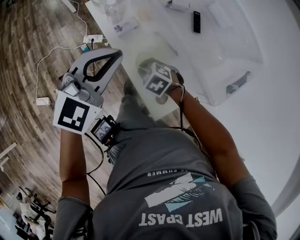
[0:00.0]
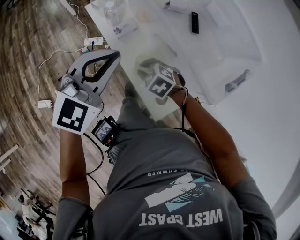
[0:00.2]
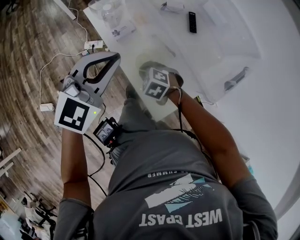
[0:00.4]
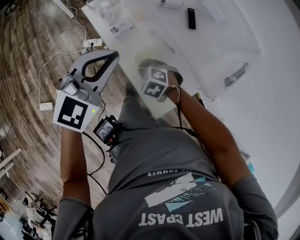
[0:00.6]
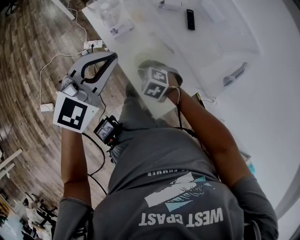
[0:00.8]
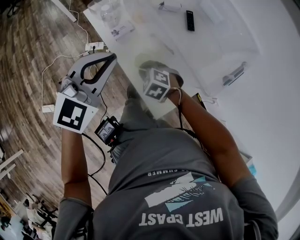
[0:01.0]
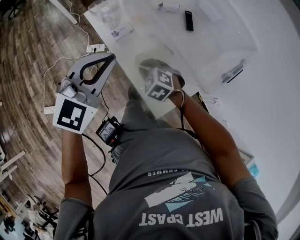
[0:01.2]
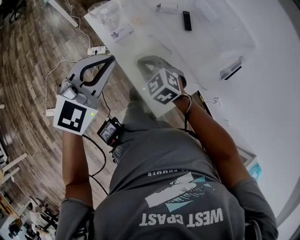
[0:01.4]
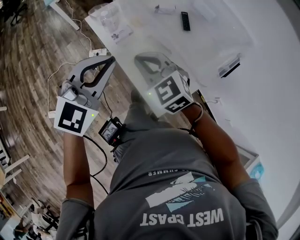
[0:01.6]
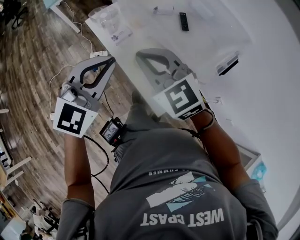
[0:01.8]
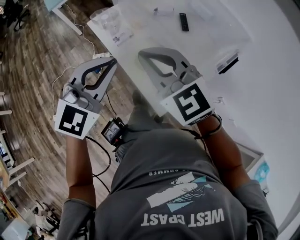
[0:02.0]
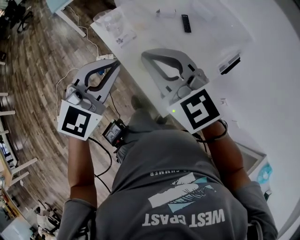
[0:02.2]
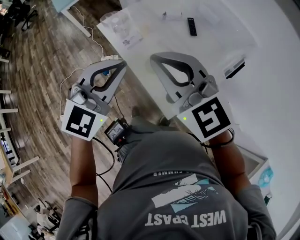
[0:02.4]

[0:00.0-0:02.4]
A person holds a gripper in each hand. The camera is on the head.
0:00.0 to 0:01.2: There are only small adjustments of the grippers.
0:01.2 to 0:02.4: The left gripper travels upward by roughly 5 cm. The right gripper shifts approximately 30 cm upward, and tilts its fingers about 50 degrees upward.

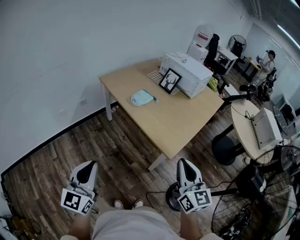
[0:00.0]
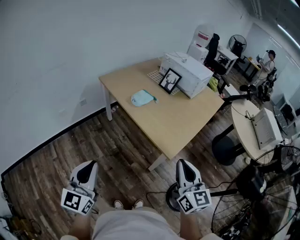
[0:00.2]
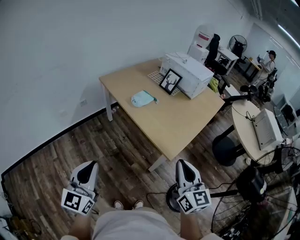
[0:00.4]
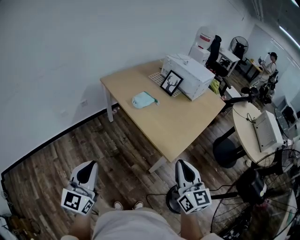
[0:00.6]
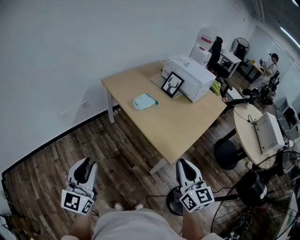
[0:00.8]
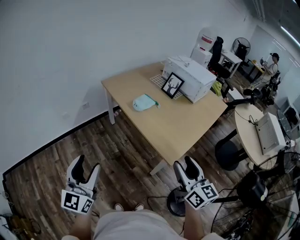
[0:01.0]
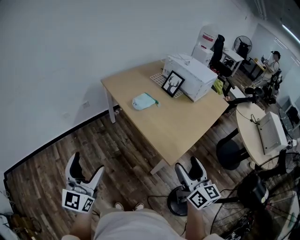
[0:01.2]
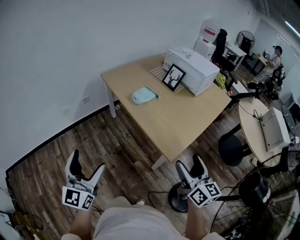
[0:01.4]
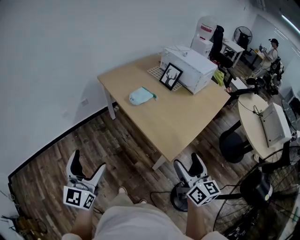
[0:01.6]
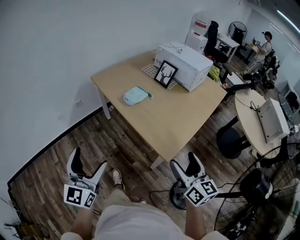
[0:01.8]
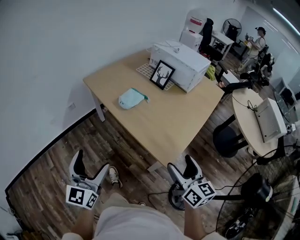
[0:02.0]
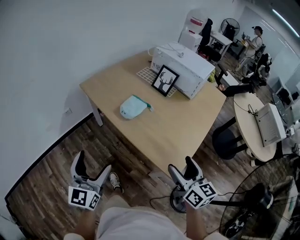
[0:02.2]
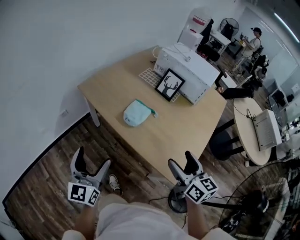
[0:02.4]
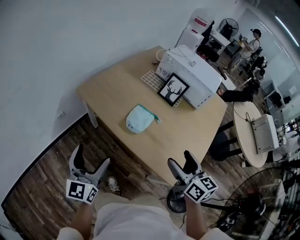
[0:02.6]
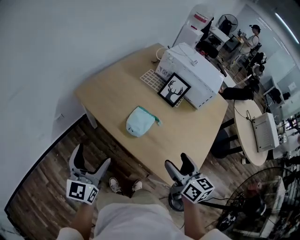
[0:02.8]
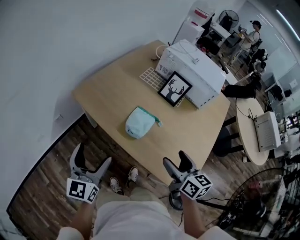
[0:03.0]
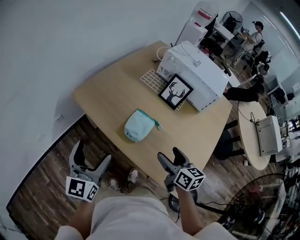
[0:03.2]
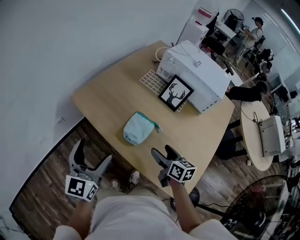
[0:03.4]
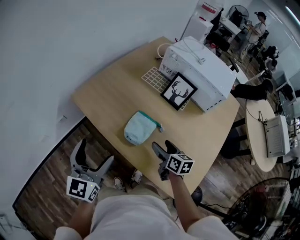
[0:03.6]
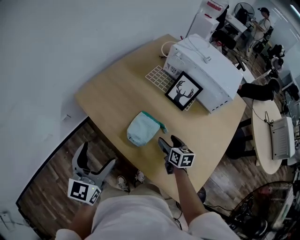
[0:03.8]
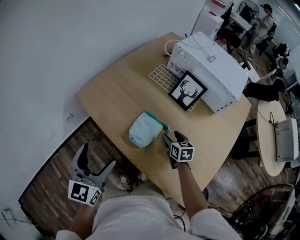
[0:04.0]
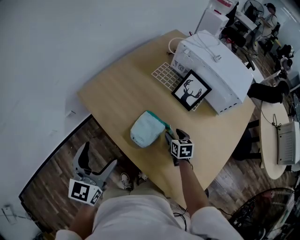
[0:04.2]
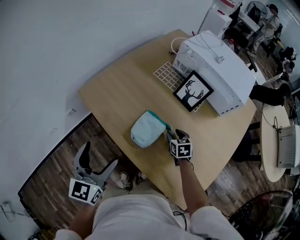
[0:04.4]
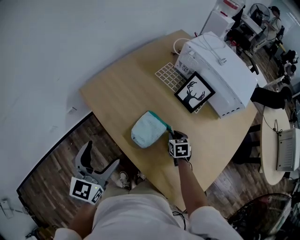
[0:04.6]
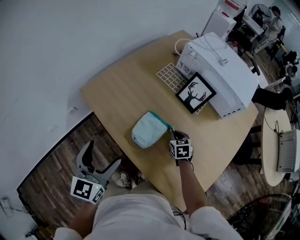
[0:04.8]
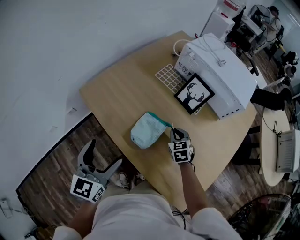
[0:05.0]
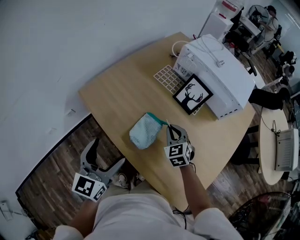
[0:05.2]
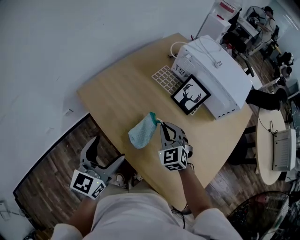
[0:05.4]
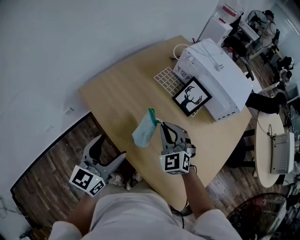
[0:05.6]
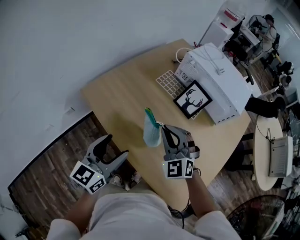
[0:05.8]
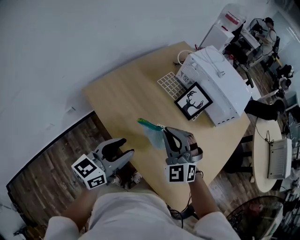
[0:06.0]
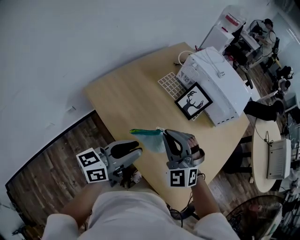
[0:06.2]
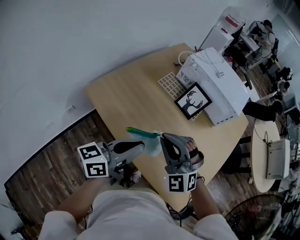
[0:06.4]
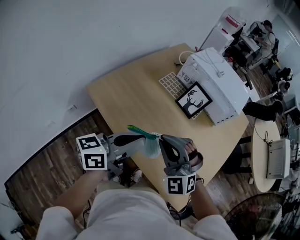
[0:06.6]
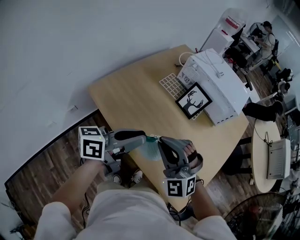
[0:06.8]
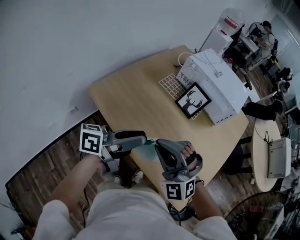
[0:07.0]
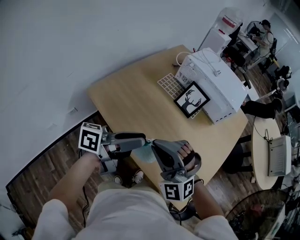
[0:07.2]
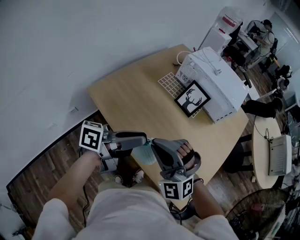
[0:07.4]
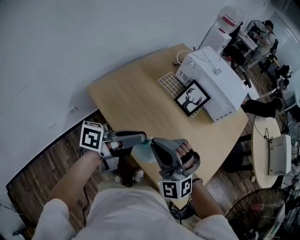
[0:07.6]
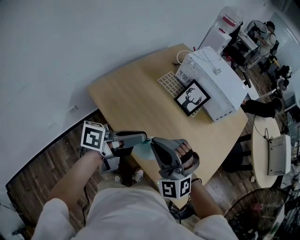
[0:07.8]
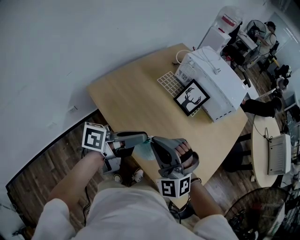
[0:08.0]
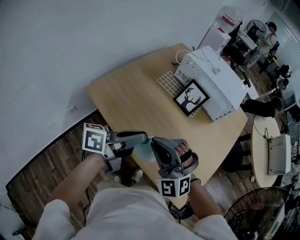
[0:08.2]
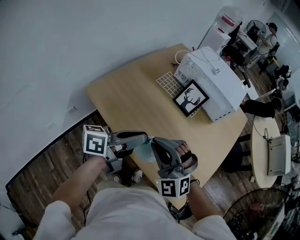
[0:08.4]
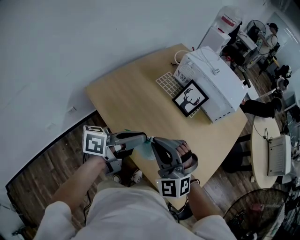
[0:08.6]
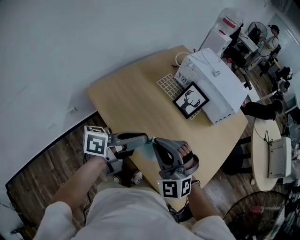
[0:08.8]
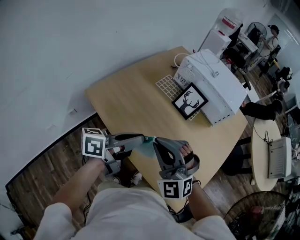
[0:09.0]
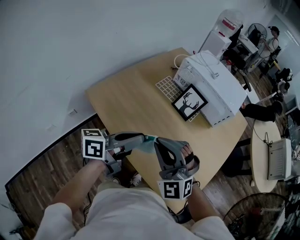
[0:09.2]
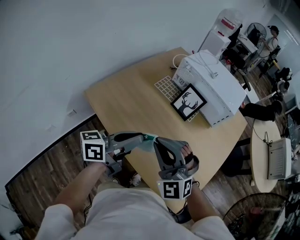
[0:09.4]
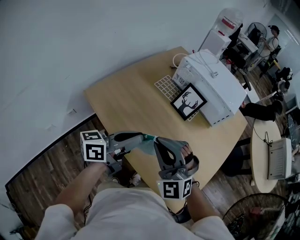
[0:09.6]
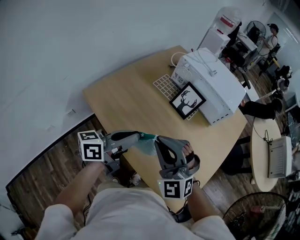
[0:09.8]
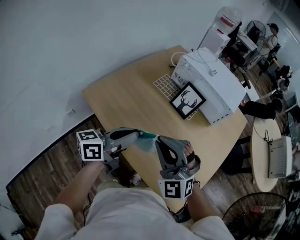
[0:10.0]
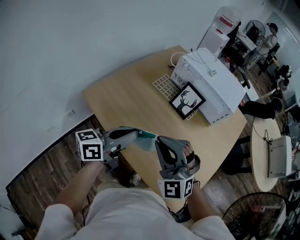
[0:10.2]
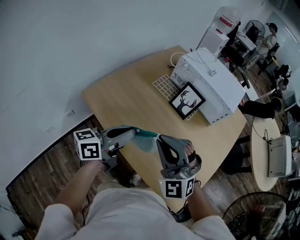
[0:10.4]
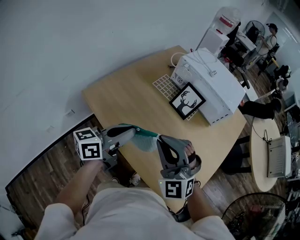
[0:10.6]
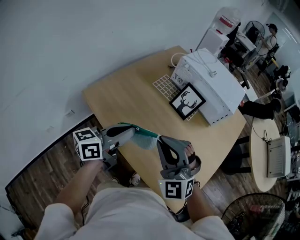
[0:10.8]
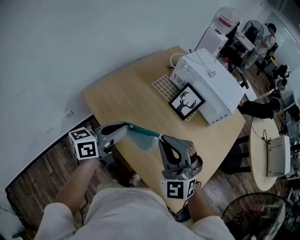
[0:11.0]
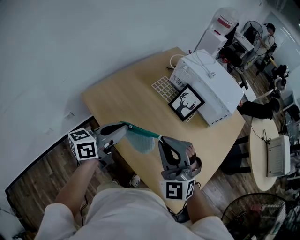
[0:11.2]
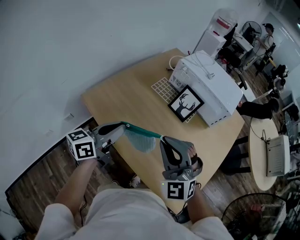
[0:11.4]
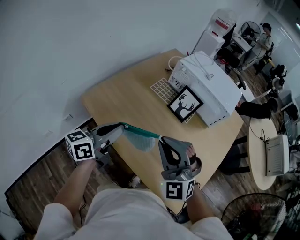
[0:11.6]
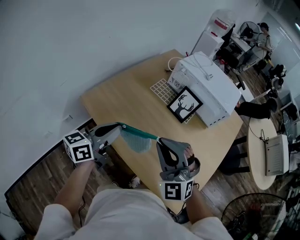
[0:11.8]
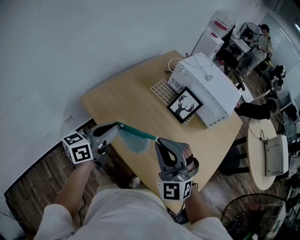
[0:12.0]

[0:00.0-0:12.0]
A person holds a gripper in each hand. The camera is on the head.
0:00.0 to 0:01.6: The left gripper is displaced forward by about 5 cm, and opens up, while the right gripper heads to the right, forward and downward, covering approximately 10 cm, and opens up.
0:01.6 to 0:03.0: The right gripper goes roughly 40 cm forward and to the left, while the left gripper moves forward, roughly 40 cm.
0:03.0 to 0:04.4: The right gripper shifts some 30 cm downward and forward, changes its angle by roughly 30 degrees, and closes its fingers; the left gripper moves forward and to the right, about 10 cm.
0:04.4 to 0:06.0: The right gripper travels upward and to the left by some 30 cm, rotates around the line of its fingers by some 60 degrees, counterclockwise from behind, and closes up. The left gripper moves to the right, some 5 cm, swivels some 30 degrees, and closes its fingers.
0:06.0 to 0:07.6: The right gripper moves backward, approximately 10 cm, while the left gripper moves about 5 cm, and turns by some 50 degrees.
0:07.6 to 0:09.0: There are only small adjustments of the grippers.
0:09.0 to 0:10.4: The grippers make only small movements.
0:10.4 to 0:12.0: The left gripper travels to the left by roughly 10 cm.

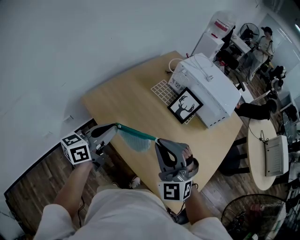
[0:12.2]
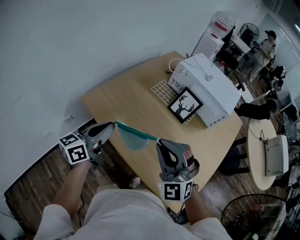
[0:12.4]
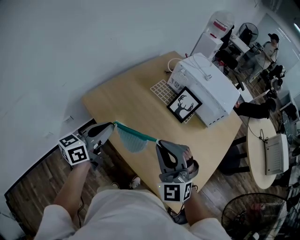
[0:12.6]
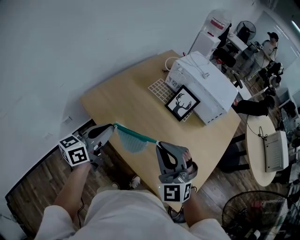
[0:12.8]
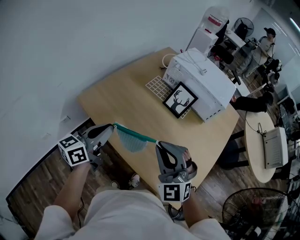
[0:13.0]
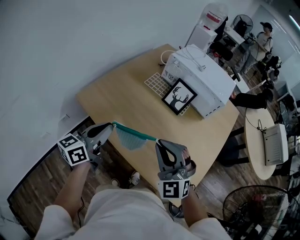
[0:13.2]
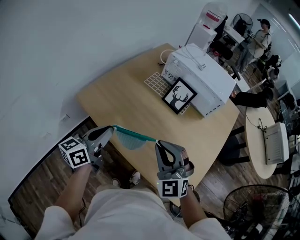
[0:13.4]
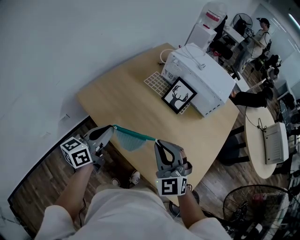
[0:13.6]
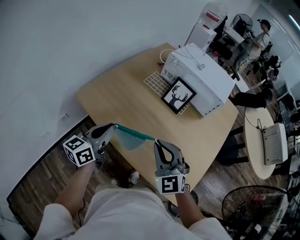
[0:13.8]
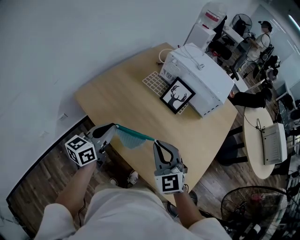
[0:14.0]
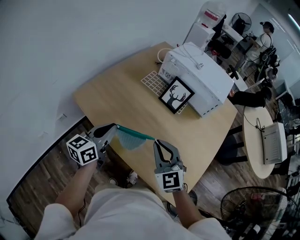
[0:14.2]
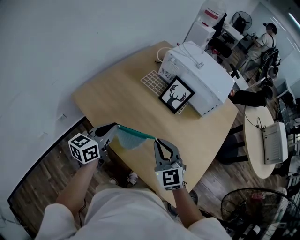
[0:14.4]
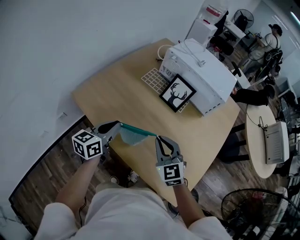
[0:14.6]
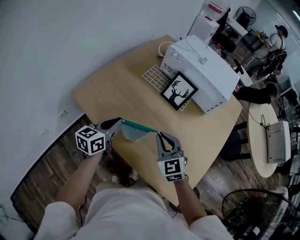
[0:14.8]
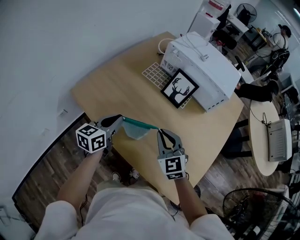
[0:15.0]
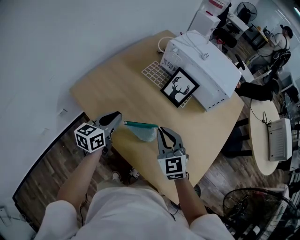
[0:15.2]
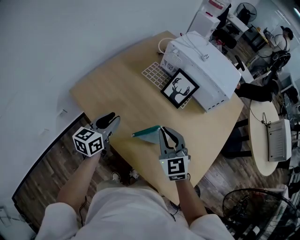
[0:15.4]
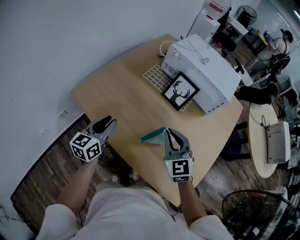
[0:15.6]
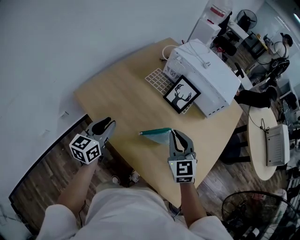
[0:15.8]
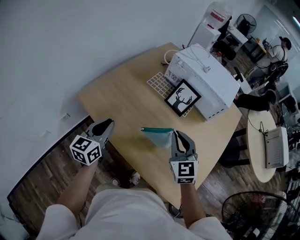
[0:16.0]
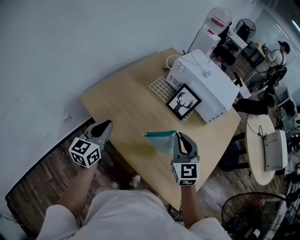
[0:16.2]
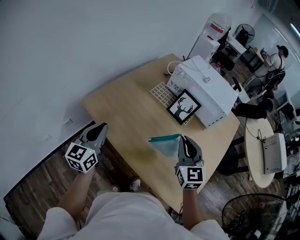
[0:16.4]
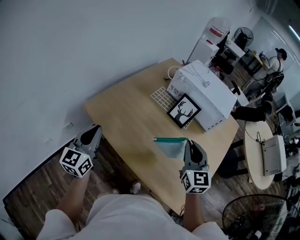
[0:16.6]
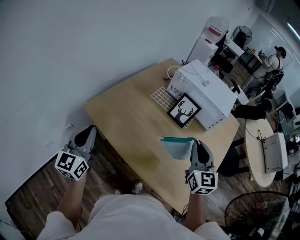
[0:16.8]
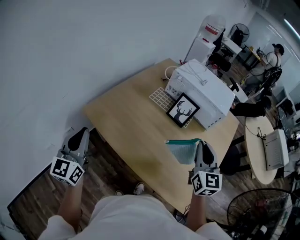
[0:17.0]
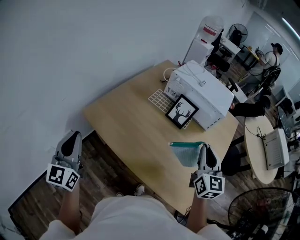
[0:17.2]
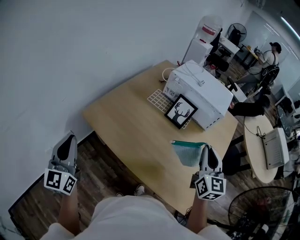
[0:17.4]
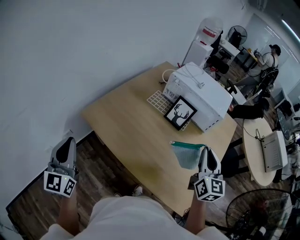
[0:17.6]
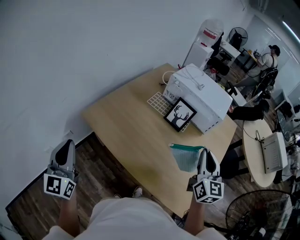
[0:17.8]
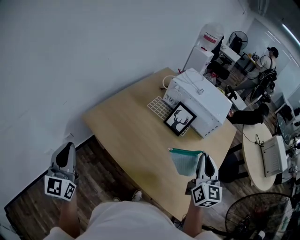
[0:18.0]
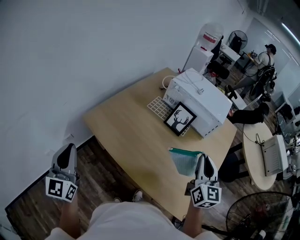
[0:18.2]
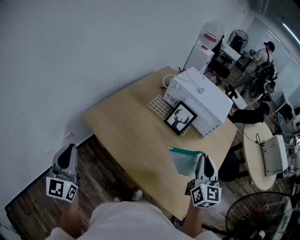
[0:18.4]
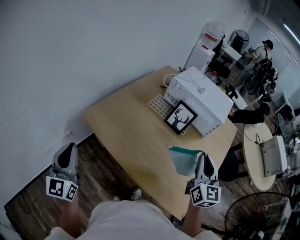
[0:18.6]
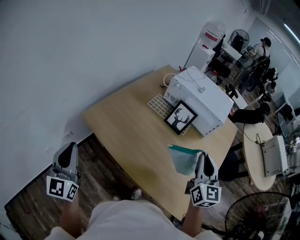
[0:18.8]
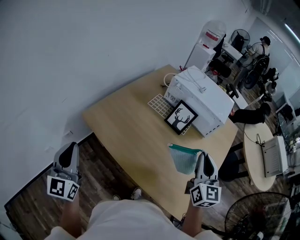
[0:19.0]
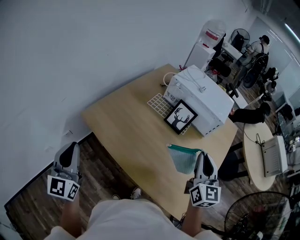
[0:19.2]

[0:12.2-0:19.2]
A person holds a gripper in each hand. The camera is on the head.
0:12.2 to 0:13.6: The right gripper heads downward, covering approximately 5 cm.
0:13.6 to 0:15.0: The left gripper shifts about 10 cm forward and downward; the right gripper moves downward and forward, approximately 10 cm, and turns by approximately 20 degrees.
0:15.0 to 0:16.4: The right gripper is displaced upward by about 10 cm. The left gripper is displaced to the left, upward and backward by approximately 15 cm, and swivels roughly 20 degrees.
0:16.4 to 0:17.8: The right gripper is displaced to the right and upward by some 10 cm, and swivels approximately 20 degrees. Meanwhile the left gripper travels upward, backward and to the left by approximately 15 cm, and turns by roughly 20 degrees.
0:17.8 to 0:19.2: The grippers make only small movements.

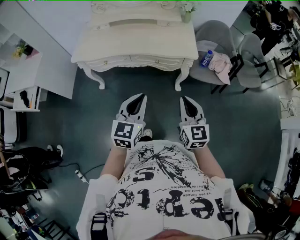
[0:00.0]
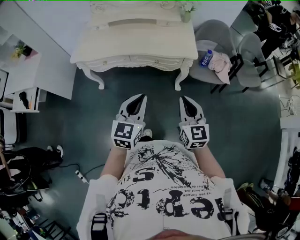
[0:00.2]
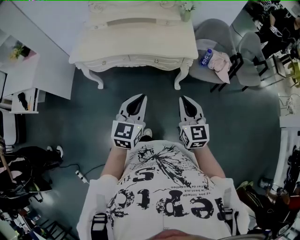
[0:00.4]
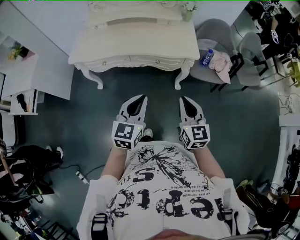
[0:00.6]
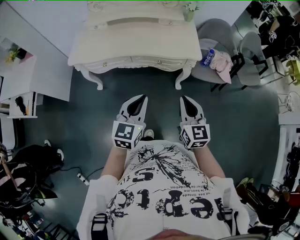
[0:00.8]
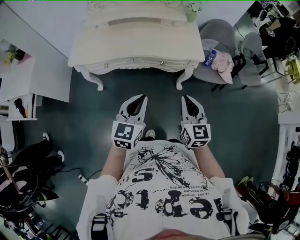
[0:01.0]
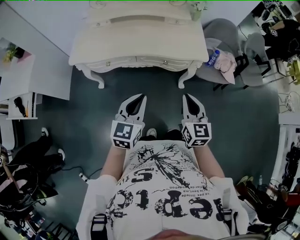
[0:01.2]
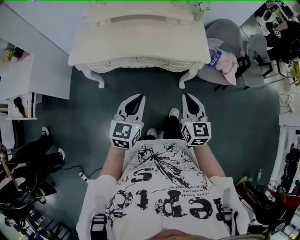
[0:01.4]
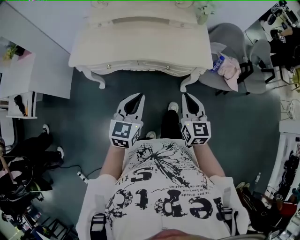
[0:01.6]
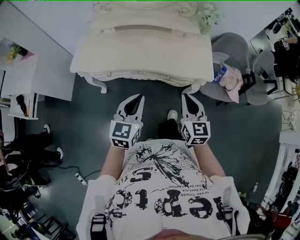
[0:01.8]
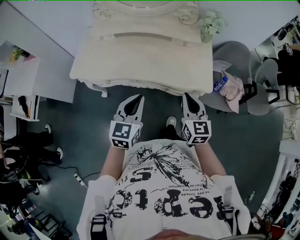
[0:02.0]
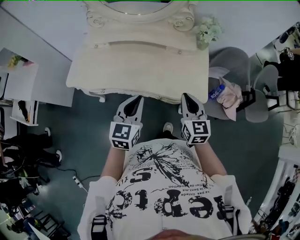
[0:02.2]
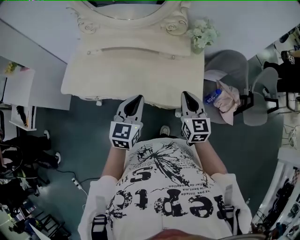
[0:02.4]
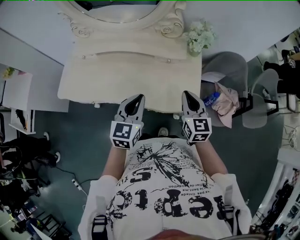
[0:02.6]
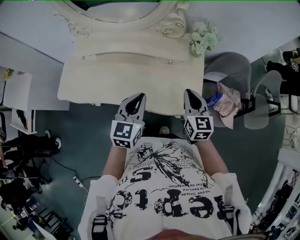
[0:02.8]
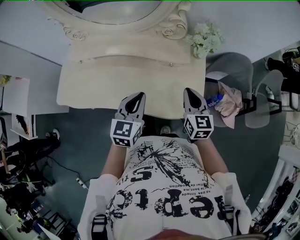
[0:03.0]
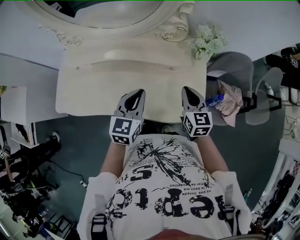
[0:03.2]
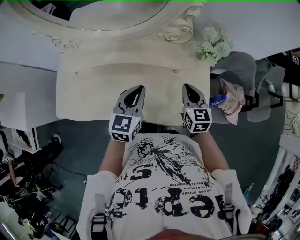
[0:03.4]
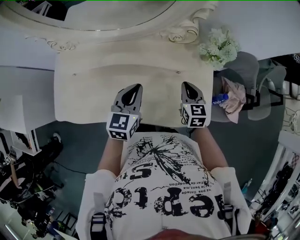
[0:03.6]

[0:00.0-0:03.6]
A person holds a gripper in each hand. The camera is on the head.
0:00.0 to 0:01.8: The right gripper goes about 20 cm forward; the left gripper travels forward and to the left by about 20 cm.
0:01.8 to 0:03.6: The pair of grippers is taken forward, roughly 40 cm.
